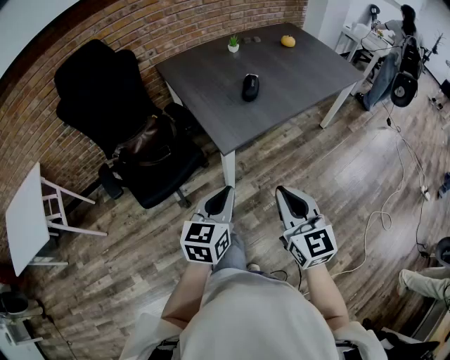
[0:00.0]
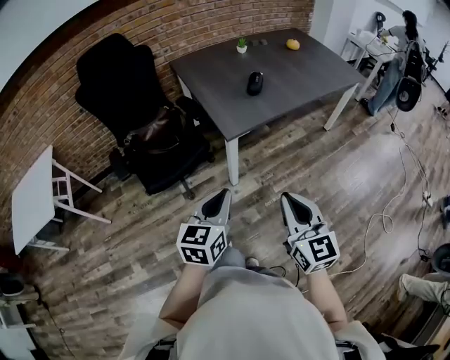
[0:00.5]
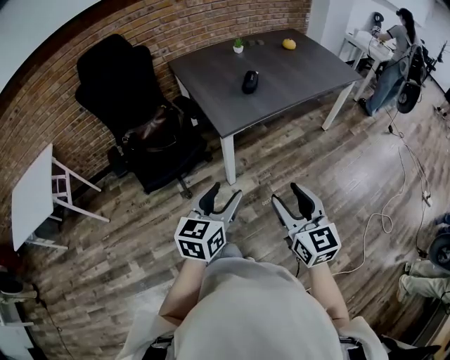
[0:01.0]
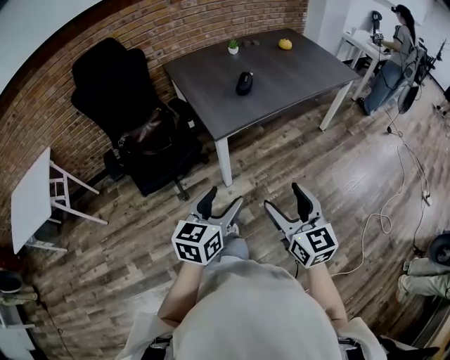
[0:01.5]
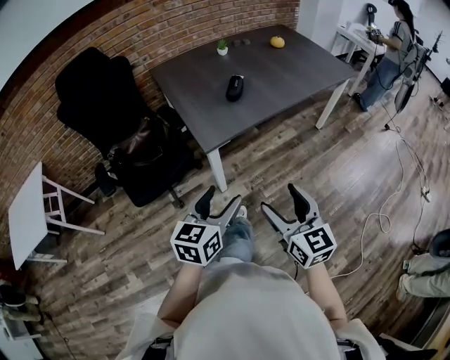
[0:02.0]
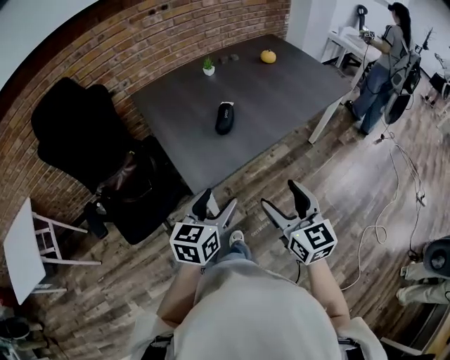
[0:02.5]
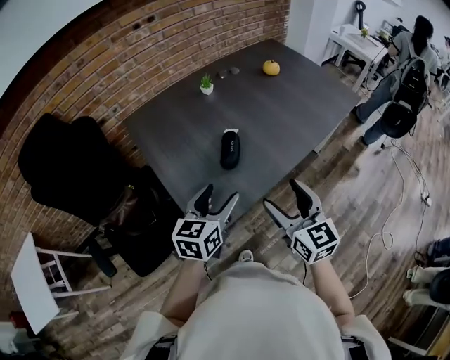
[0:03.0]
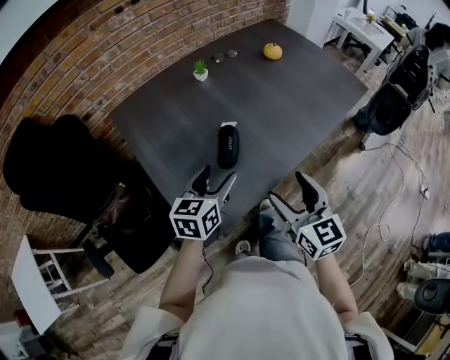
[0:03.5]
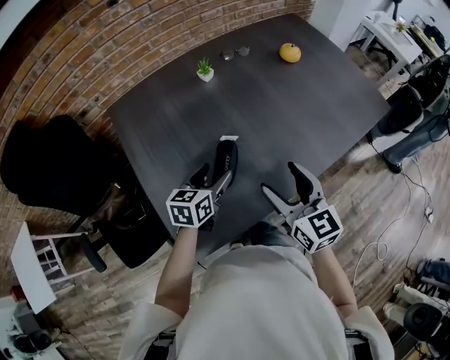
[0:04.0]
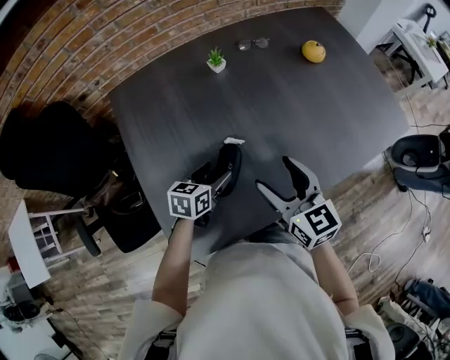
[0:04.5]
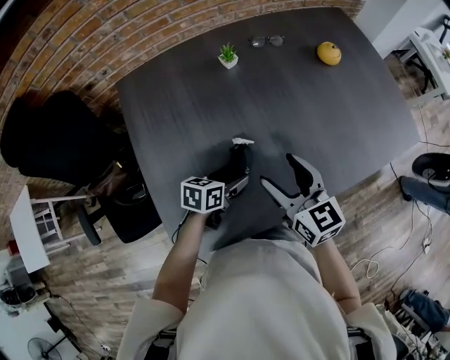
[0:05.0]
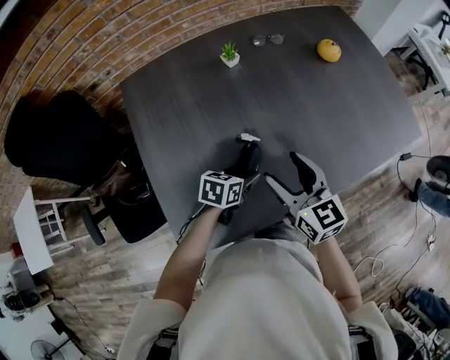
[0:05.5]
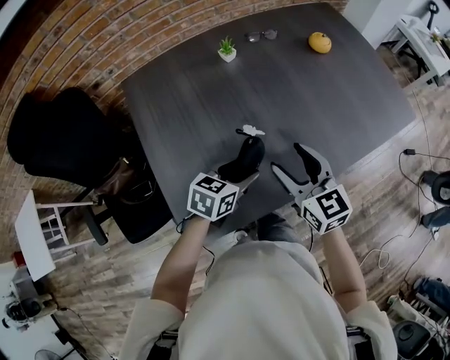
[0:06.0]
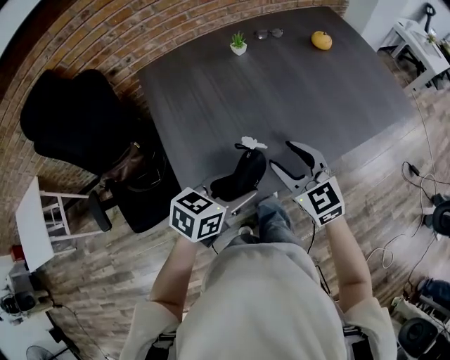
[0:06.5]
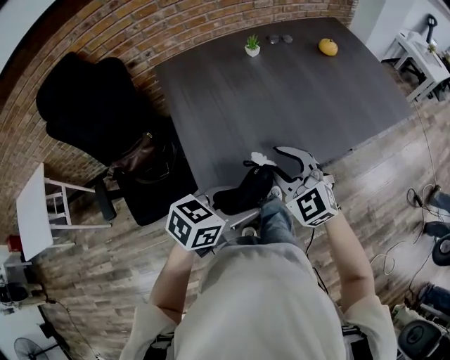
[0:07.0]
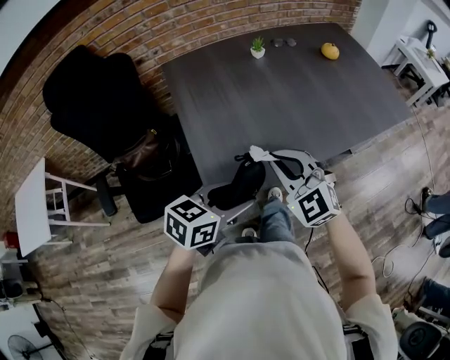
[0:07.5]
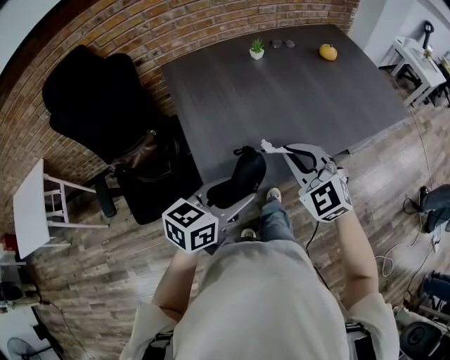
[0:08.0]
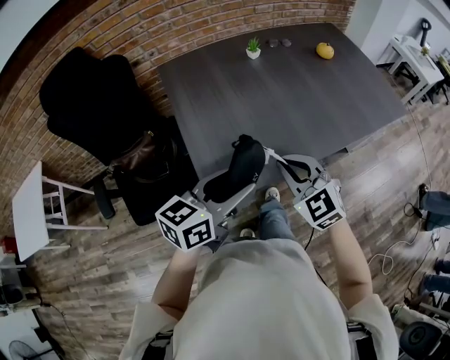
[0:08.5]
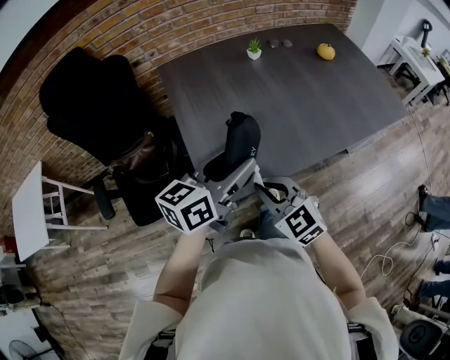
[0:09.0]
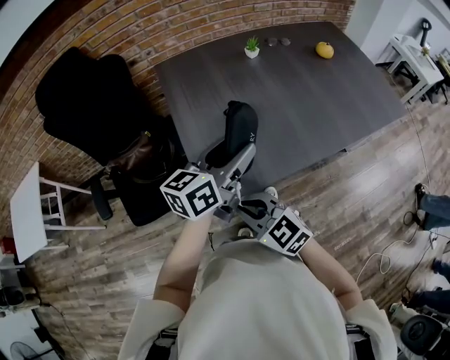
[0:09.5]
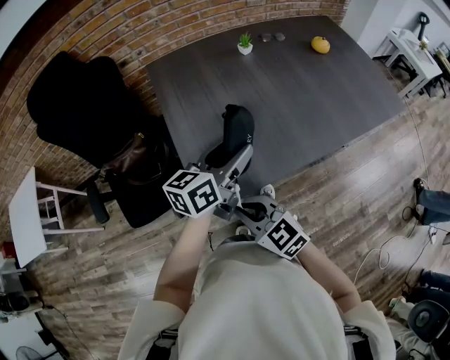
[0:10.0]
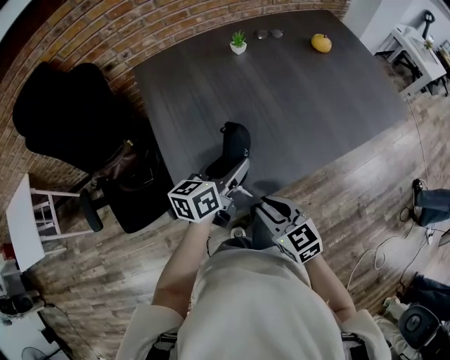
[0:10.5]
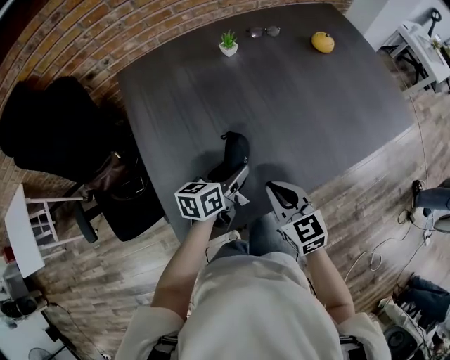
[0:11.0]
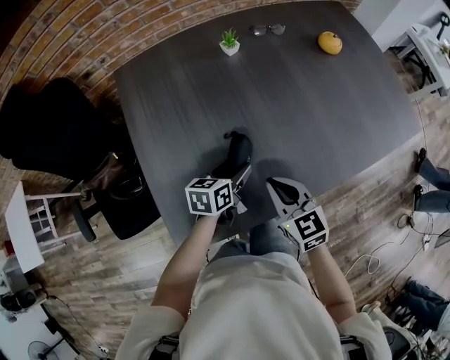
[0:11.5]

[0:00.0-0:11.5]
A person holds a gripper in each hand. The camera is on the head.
0:00.0 to 0:02.0: The grippers both shift to the right by about 10 cm. The left gripper reaches about 10 cm backward, then returns, and opens; the right gripper moves approximately 10 cm backward and comes back, and opens its fingers.
0:02.0 to 0:04.0: The pair of grippers is taken forward, about 50 cm.
0:04.0 to 0:06.0: The left gripper goes approximately 5 cm to the right, and reaches roughly 10 cm downward, then returns.
0:06.0 to 0:07.5: The left gripper is displaced backward and upward by some 25 cm. Meanwhile the right gripper moves backward and to the left, about 20 cm, rotates around the line of its fingers by some 40 degrees, counterclockwise from behind, and closes its fingers.
0:07.5 to 0:09.5: The right gripper travels backward, to the left and downward by some 15 cm, and turns by about 30 degrees, while the left gripper heads forward and upward, covering about 15 cm, and swivels about 30 degrees.
0:09.5 to 0:11.5: The left gripper is displaced downward, forward and to the right by some 30 cm, and points its fingers about 30 degrees further downward; the right gripper goes roughly 30 cm forward and to the right, and changes its angle by about 30 degrees.

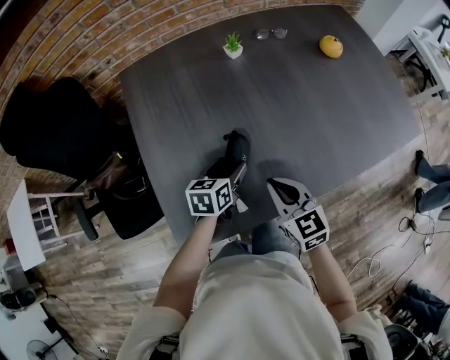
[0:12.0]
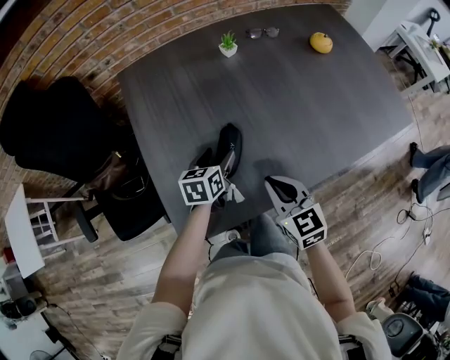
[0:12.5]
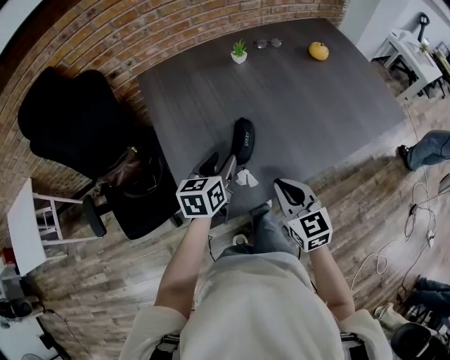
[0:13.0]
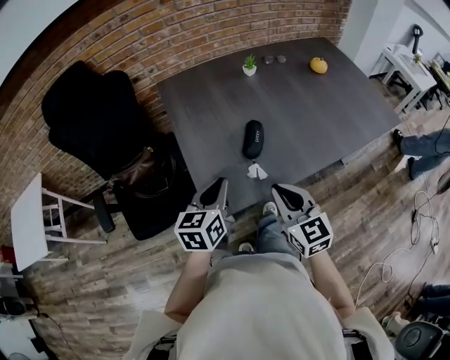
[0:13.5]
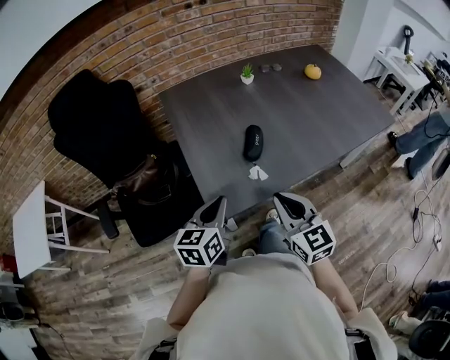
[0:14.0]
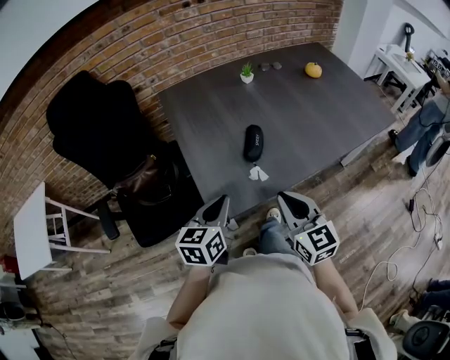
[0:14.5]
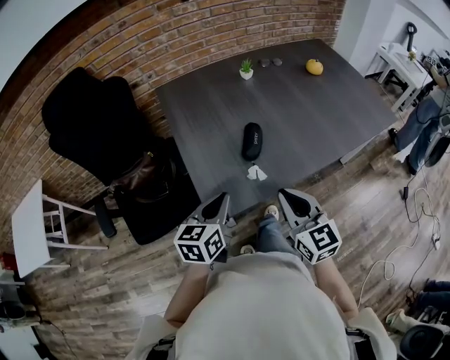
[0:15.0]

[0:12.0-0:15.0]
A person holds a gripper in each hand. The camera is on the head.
0:12.0 to 0:13.5: Both grippers move backward, upward and to the left, about 25 cm. The left gripper rotates approximately 20 degrees, and closes up.
0:13.5 to 0:15.0: The grippers make only small movements.

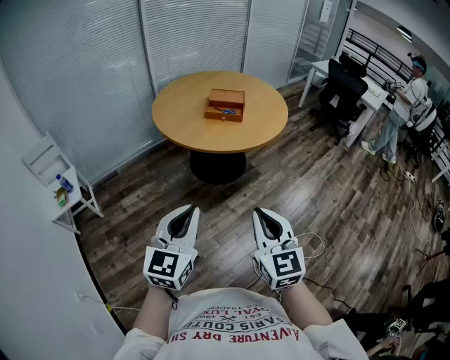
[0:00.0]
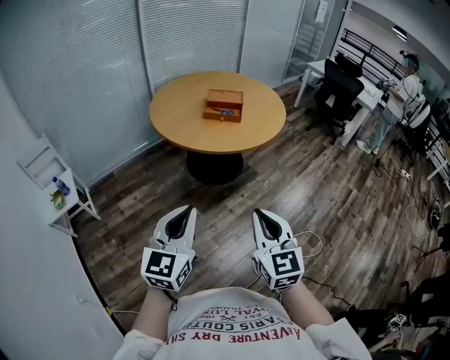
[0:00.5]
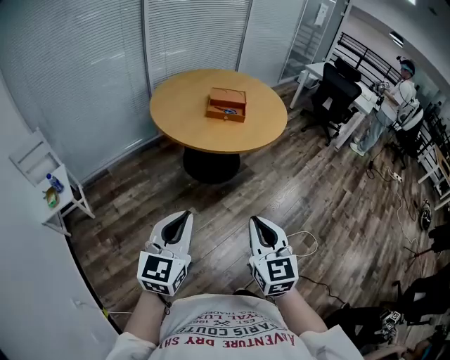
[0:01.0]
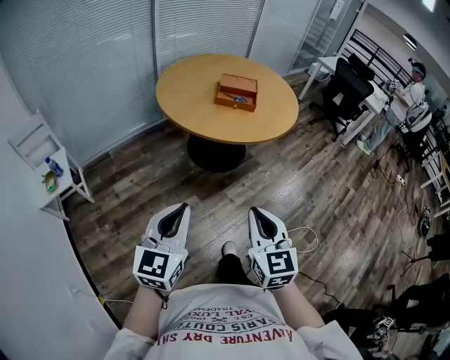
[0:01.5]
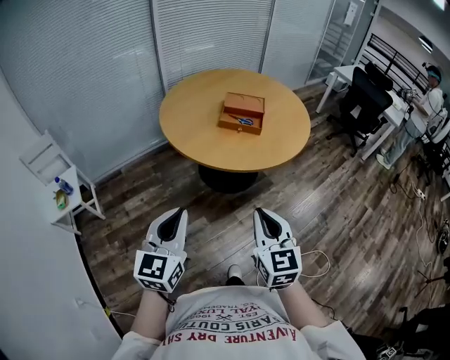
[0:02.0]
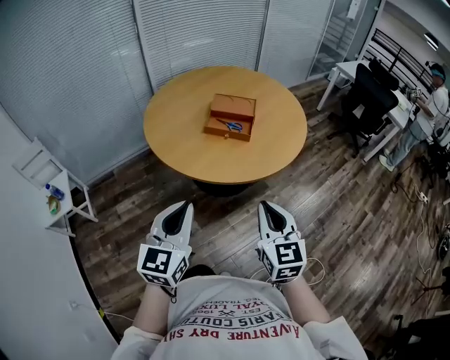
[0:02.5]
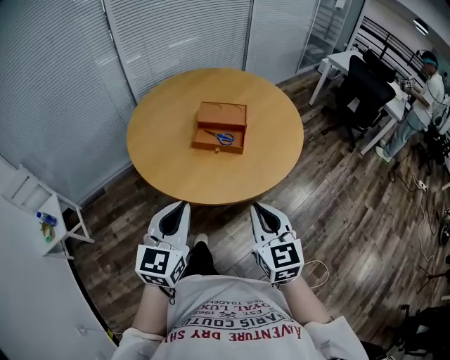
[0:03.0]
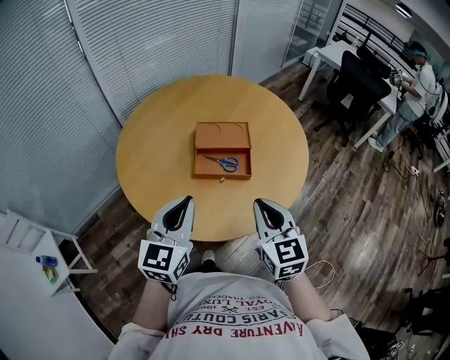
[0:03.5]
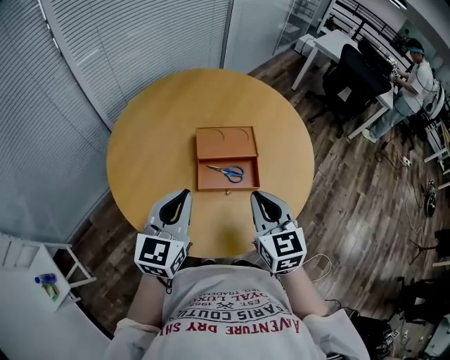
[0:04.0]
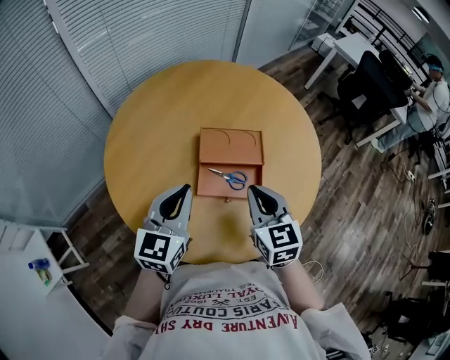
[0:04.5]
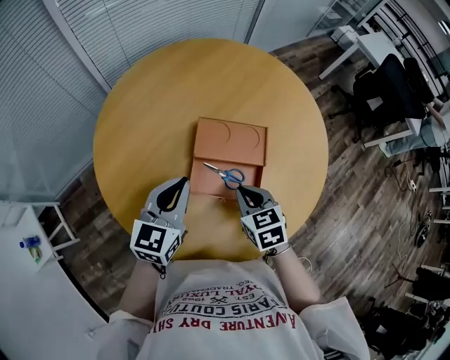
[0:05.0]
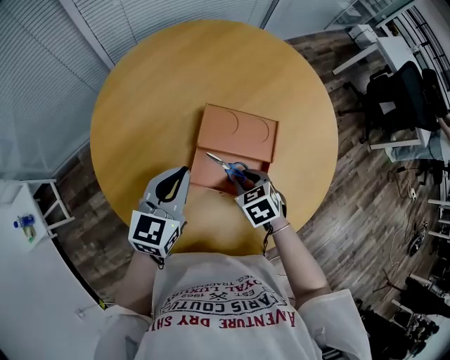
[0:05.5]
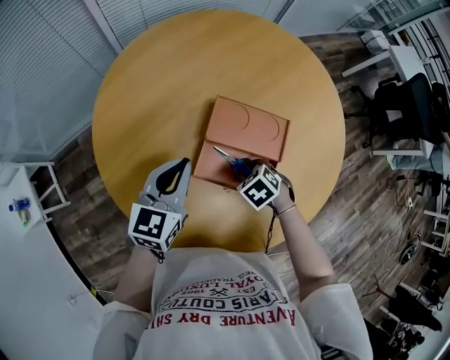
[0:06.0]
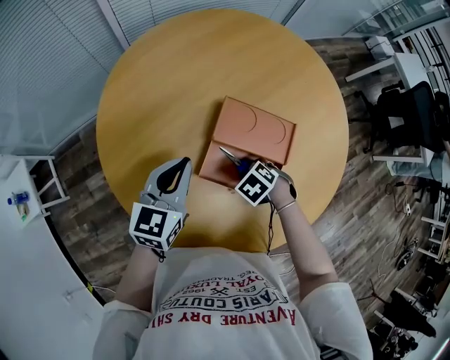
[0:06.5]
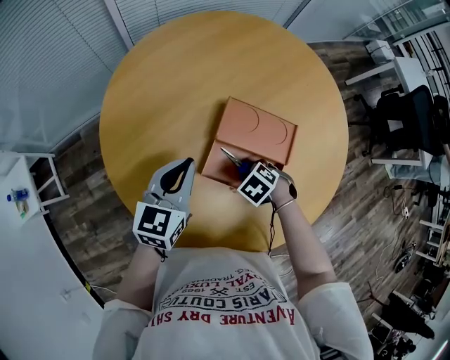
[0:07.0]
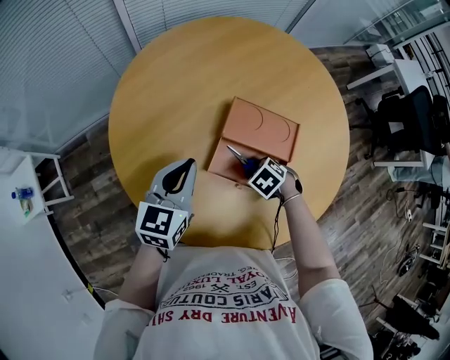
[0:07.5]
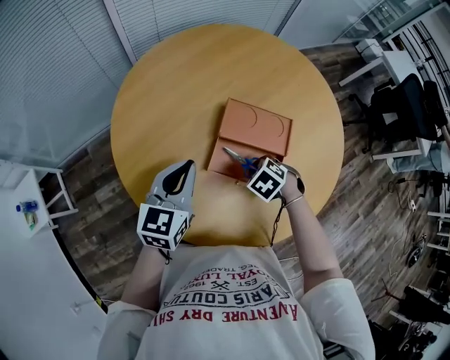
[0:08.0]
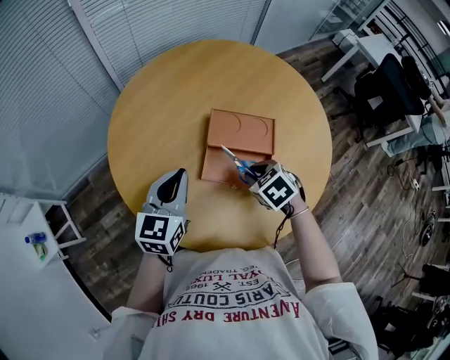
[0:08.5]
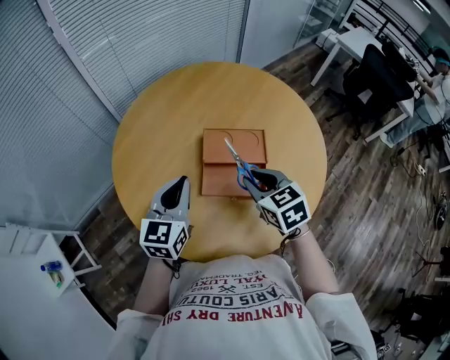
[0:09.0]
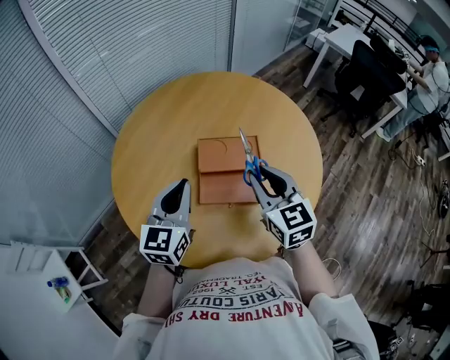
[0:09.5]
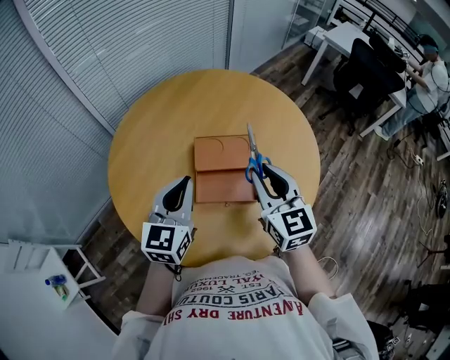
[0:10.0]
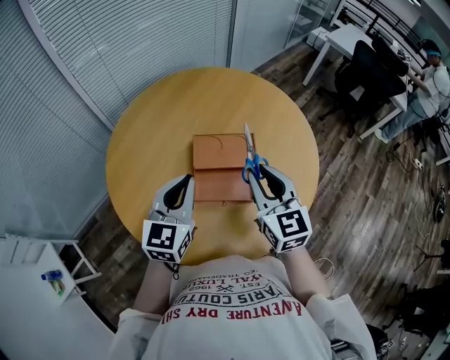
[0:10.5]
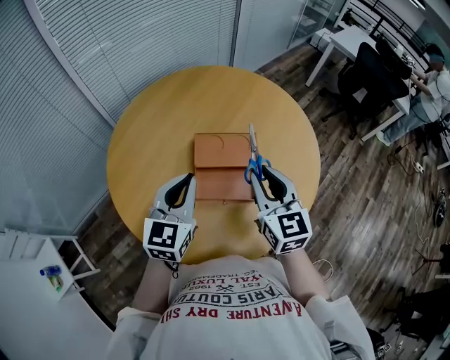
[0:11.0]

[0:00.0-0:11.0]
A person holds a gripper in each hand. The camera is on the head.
0:00.0 to 0:02.0: The right gripper moves forward, some 20 cm. Meanwhile the left gripper heads forward and to the left, covering about 15 cm.
0:02.0 to 0:03.5: The grippers both shift forward by about 40 cm.
0:03.5 to 0:05.5: Both grippers travel together forward and downward, some 30 cm. The right gripper tips its fingers downward by approximately 50 degrees, and opens its fingers.
0:05.5 to 0:07.5: The right gripper moves downward, roughly 5 cm, and swivels roughly 30 degrees. The left gripper changes place by some 5 cm.
0:07.5 to 0:09.0: The left gripper travels upward by roughly 5 cm; the right gripper shifts roughly 25 cm upward, and tilts its fingers roughly 40 degrees upward.
0:09.0 to 0:11.0: The left gripper shifts some 5 cm to the right. Meanwhile the right gripper moves upward and to the right, about 10 cm, and turns by roughly 30 degrees.

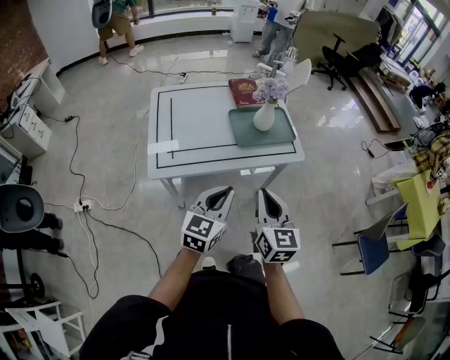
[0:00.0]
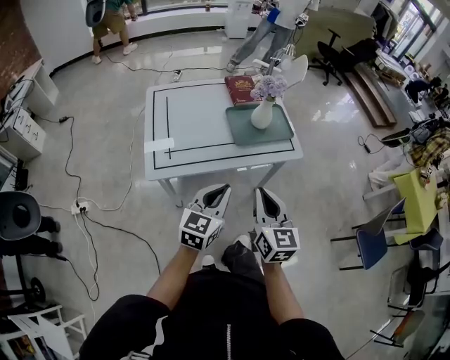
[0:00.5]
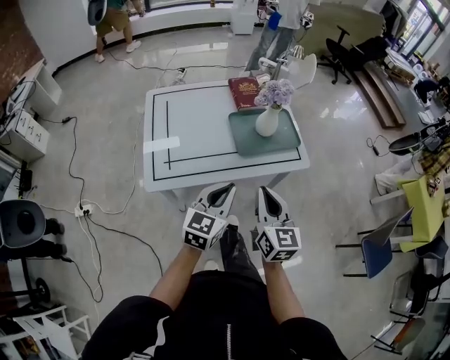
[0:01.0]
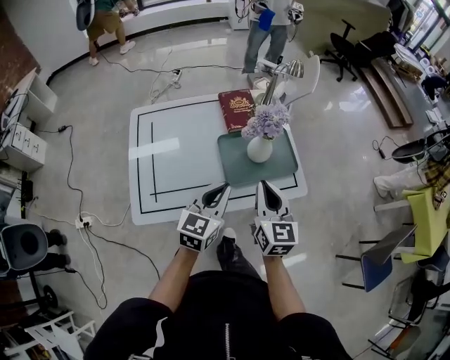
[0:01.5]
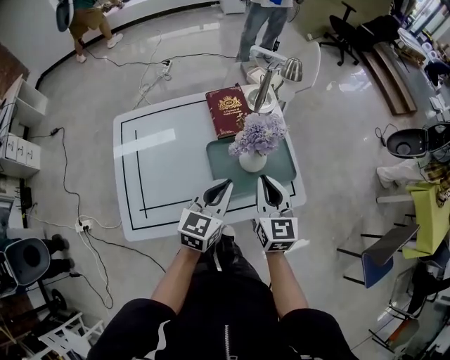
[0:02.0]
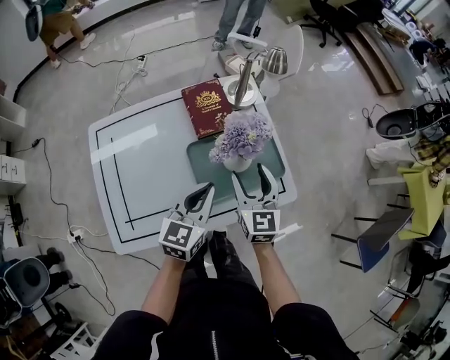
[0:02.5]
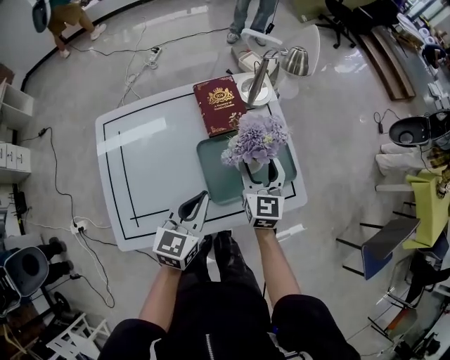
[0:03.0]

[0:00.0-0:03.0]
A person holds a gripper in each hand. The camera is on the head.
0:00.0 to 0:01.5: Both grippers travel together forward, some 25 cm.
0:01.5 to 0:03.0: The right gripper is displaced forward and downward by some 25 cm, and opens; the left gripper travels forward and downward by about 10 cm.
